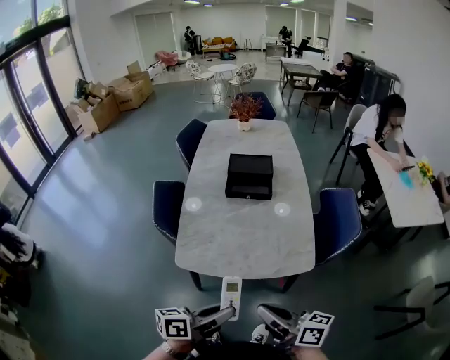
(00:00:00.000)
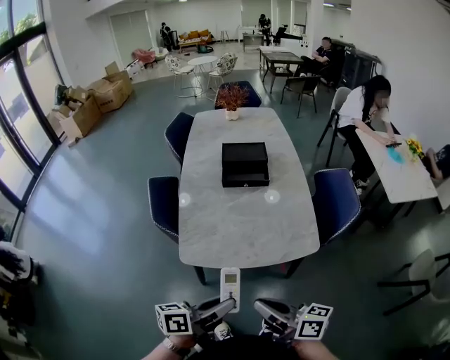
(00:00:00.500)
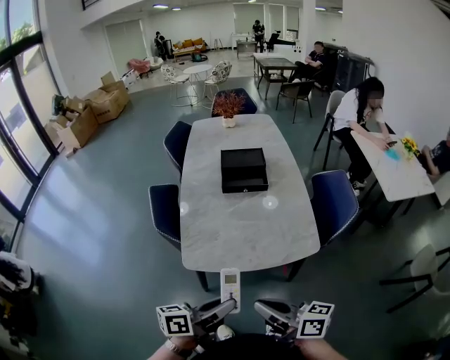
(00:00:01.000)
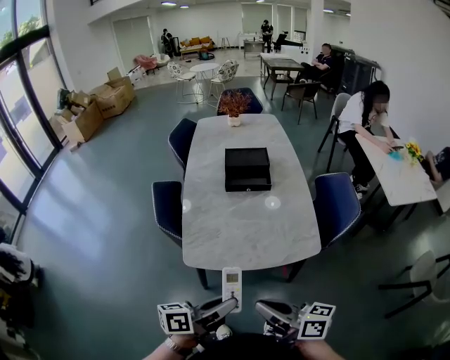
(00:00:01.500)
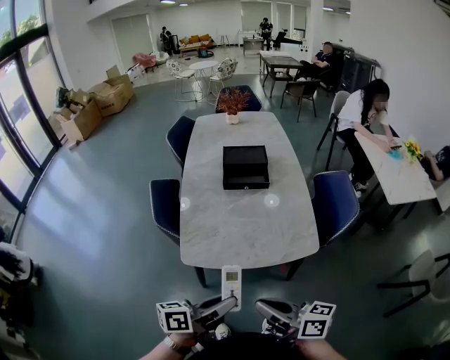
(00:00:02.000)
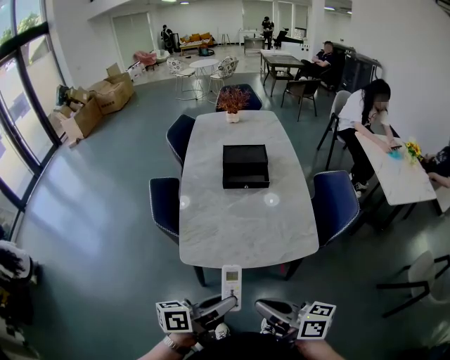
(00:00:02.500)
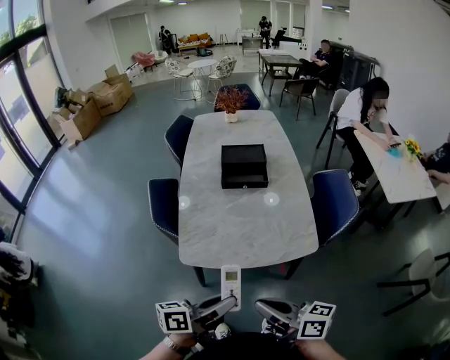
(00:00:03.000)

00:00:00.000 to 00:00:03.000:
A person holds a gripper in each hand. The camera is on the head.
00:00:00.000 to 00:00:01.500: Both grippers travel together to the left, some 5 cm.
00:00:01.500 to 00:00:03.000: The two grippers keep their place.

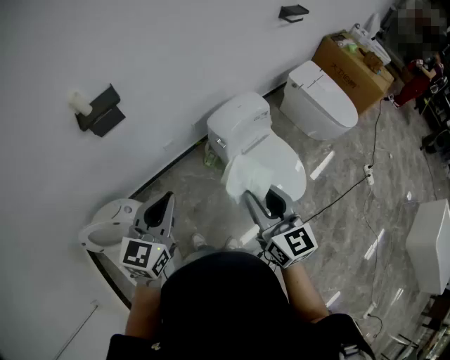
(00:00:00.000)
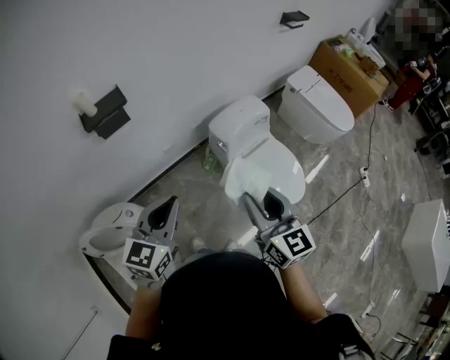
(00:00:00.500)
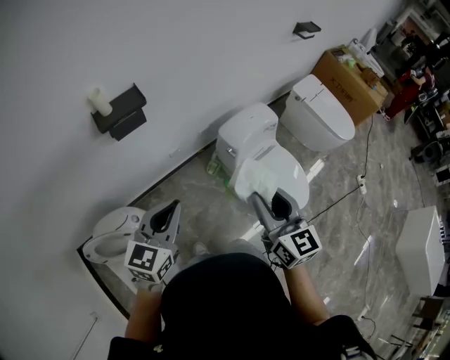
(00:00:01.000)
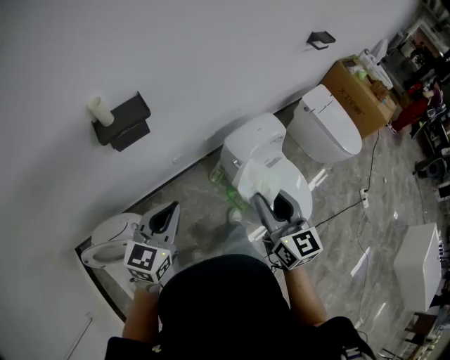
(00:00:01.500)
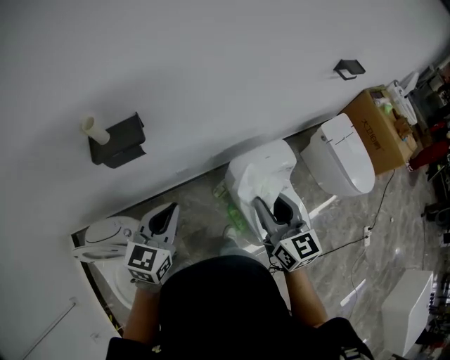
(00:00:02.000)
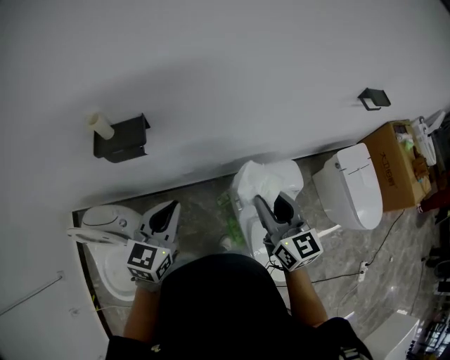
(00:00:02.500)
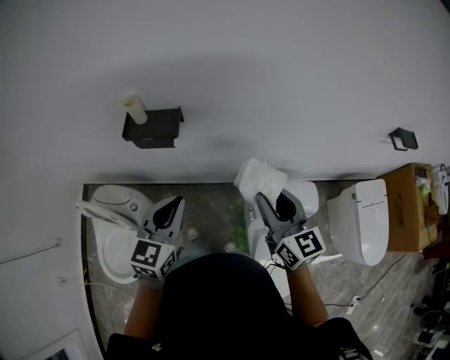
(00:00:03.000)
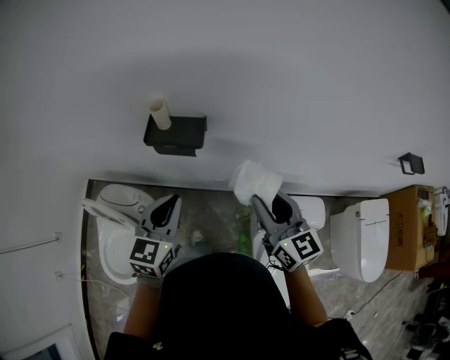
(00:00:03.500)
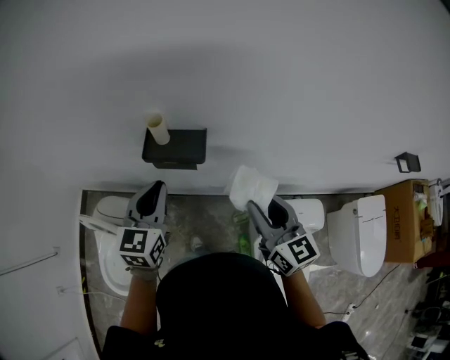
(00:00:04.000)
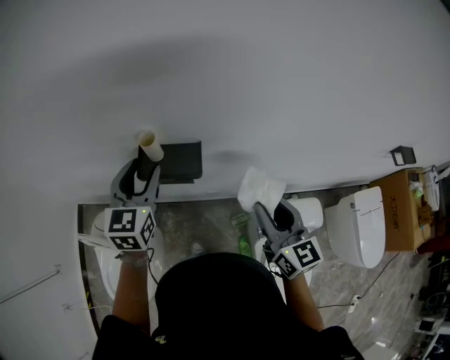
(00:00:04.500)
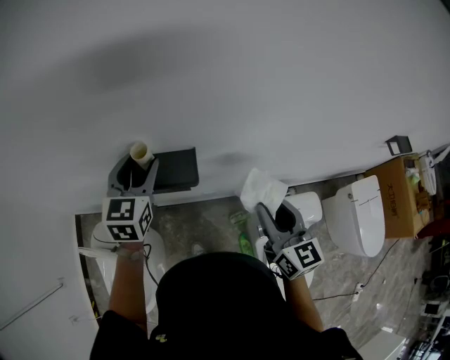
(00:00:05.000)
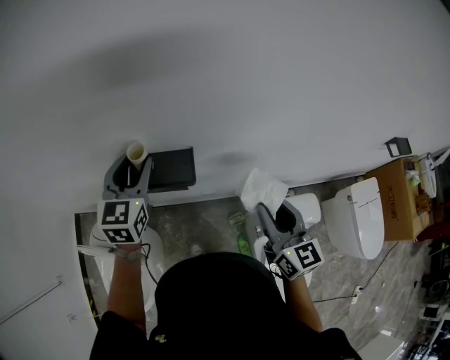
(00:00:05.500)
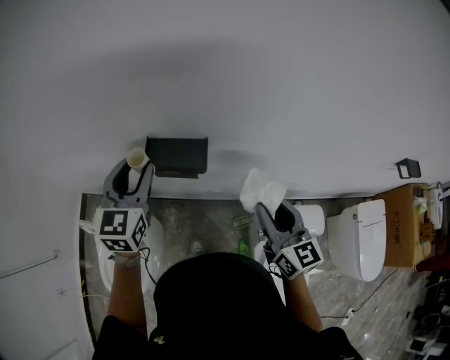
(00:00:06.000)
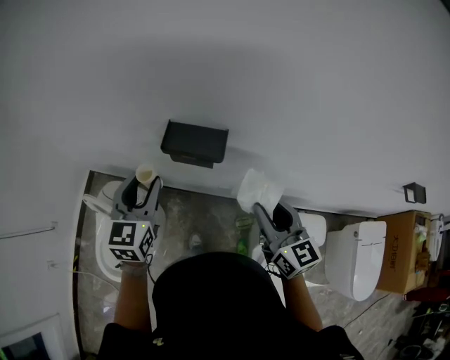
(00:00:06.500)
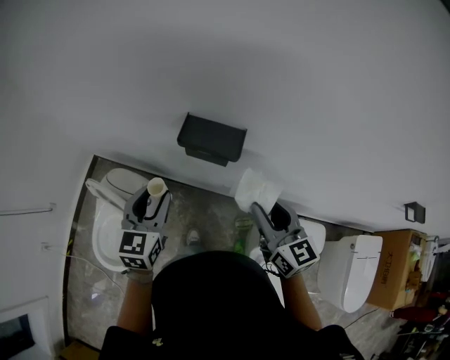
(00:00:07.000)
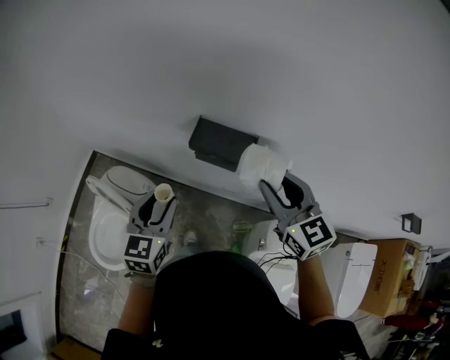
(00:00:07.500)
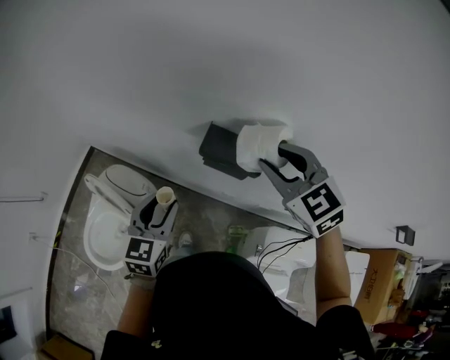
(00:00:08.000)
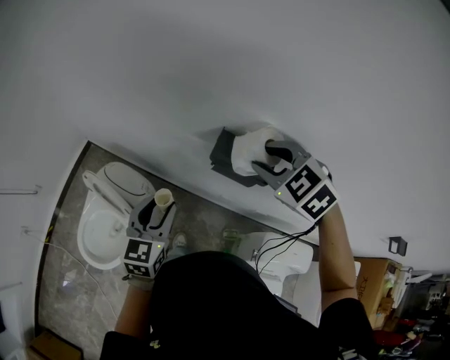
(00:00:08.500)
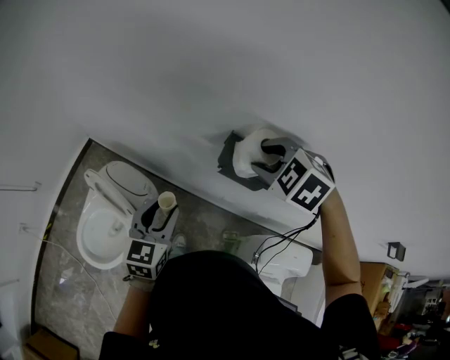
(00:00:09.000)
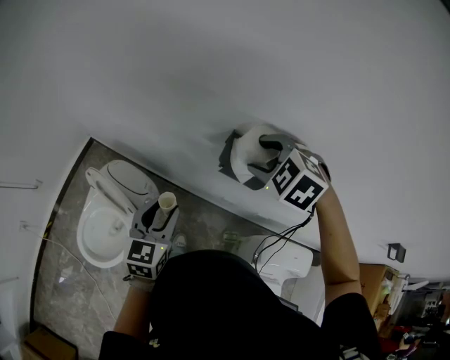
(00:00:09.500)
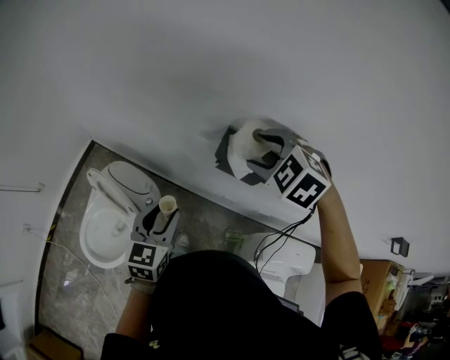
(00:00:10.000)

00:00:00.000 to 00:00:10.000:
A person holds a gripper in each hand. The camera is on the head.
00:00:00.000 to 00:00:02.000: Both grippers move forward, roughly 20 cm.
00:00:02.000 to 00:00:04.000: The left gripper moves some 20 cm, and swivels roughly 40 degrees. Meanwhile the right gripper ends up roughly 20 cm from where it was, and swivels approximately 30 degrees.
00:00:04.000 to 00:00:06.000: The left gripper goes some 10 cm to the left, upward and forward, and opens its fingers.
00:00:06.000 to 00:00:08.000: The right gripper shifts some 20 cm forward, to the left and upward, and swivels roughly 50 degrees. The left gripper shifts some 20 cm downward, backward and to the left.
00:00:08.000 to 00:00:10.000: The right gripper travels to the left by some 5 cm, changes its angle by about 30 degrees, and opens.

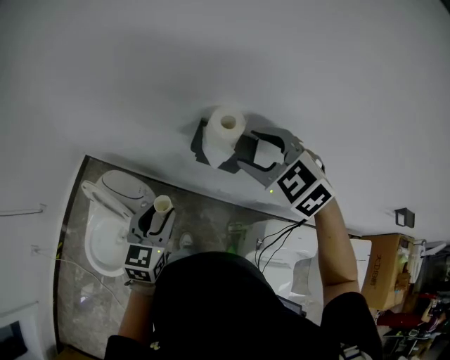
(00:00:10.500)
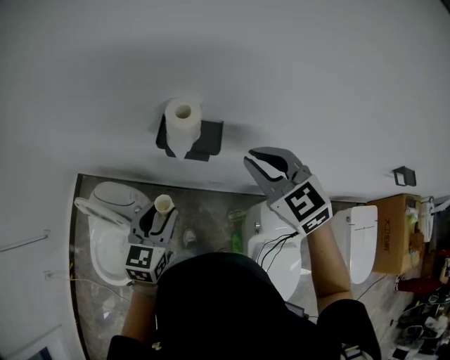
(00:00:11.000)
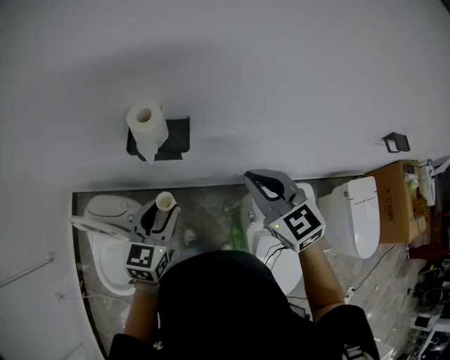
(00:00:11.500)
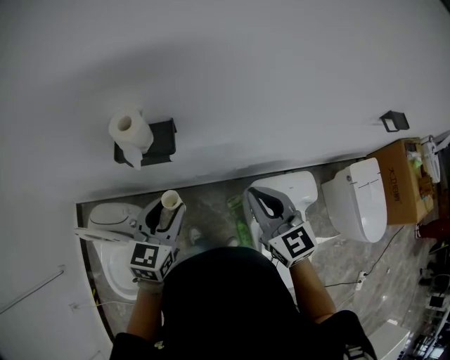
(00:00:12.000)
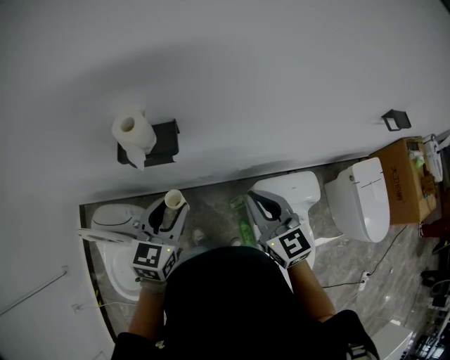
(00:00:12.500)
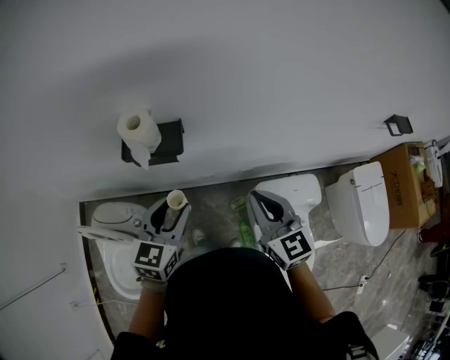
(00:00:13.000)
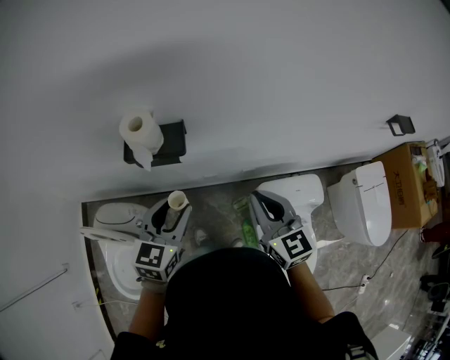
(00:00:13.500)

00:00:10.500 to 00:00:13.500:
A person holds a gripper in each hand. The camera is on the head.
00:00:10.500 to 00:00:12.000: The right gripper ends up approximately 30 cm from where it was, changes its angle by approximately 60 degrees, and closes. Meanwhile the left gripper ends up about 20 cm from where it was, and swivels about 30 degrees.
00:00:12.000 to 00:00:13.500: The grippers move only a little.

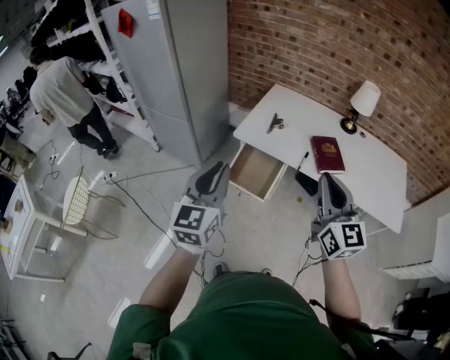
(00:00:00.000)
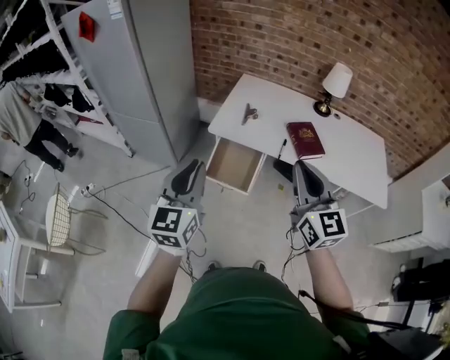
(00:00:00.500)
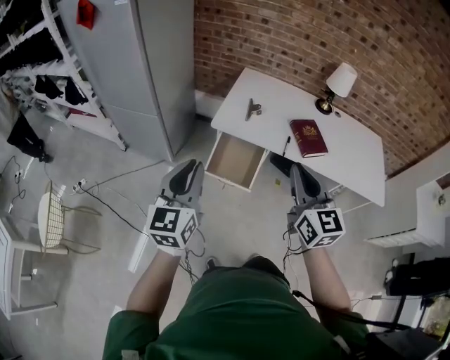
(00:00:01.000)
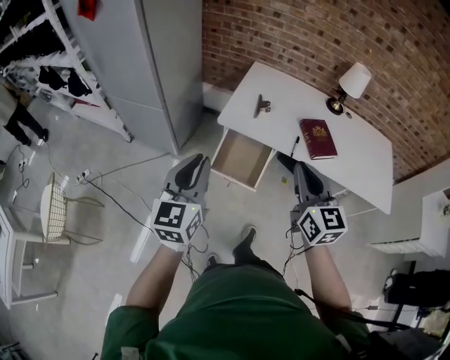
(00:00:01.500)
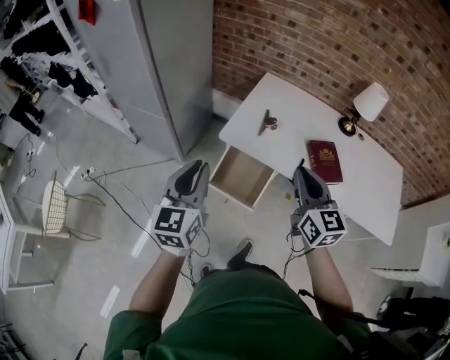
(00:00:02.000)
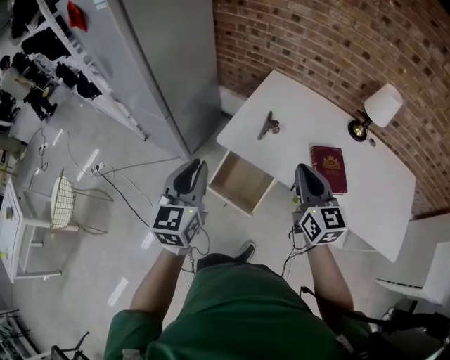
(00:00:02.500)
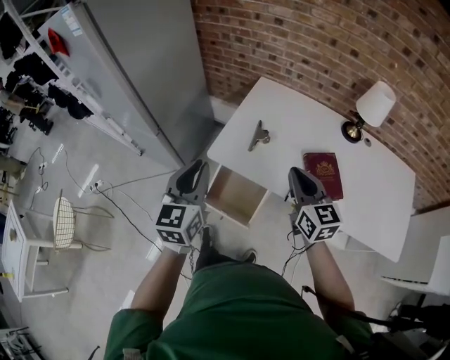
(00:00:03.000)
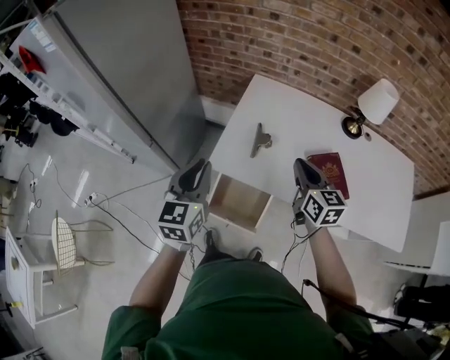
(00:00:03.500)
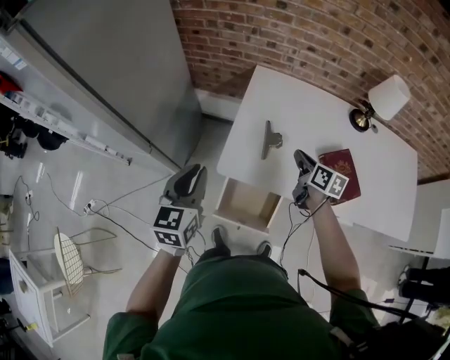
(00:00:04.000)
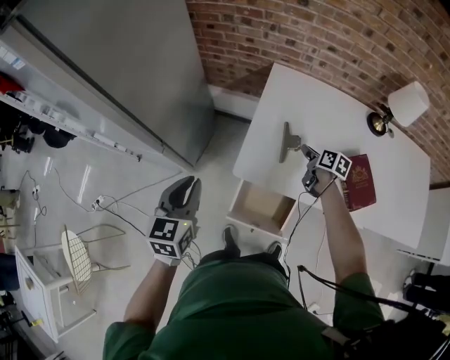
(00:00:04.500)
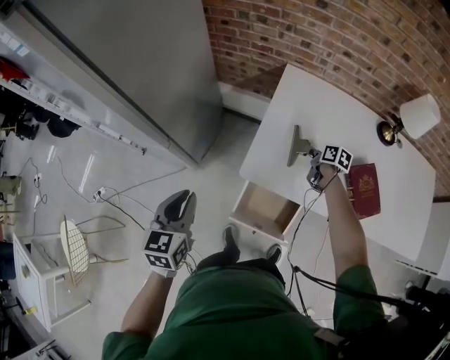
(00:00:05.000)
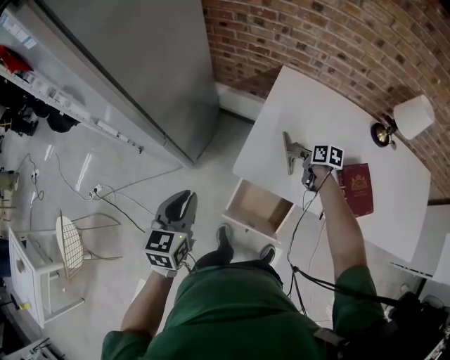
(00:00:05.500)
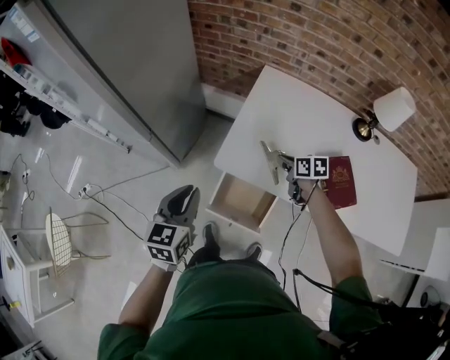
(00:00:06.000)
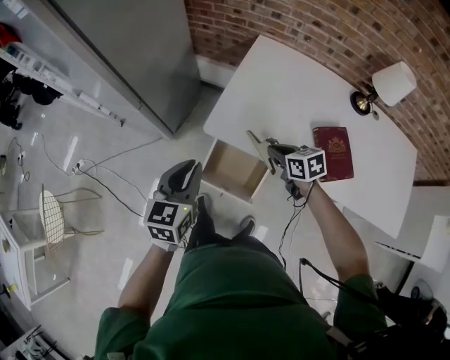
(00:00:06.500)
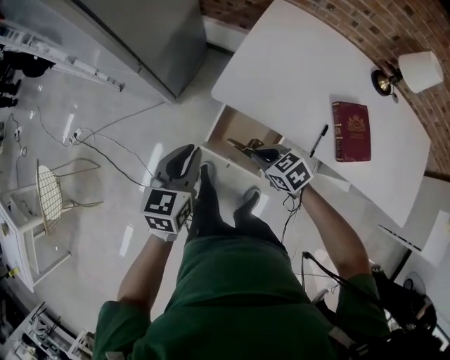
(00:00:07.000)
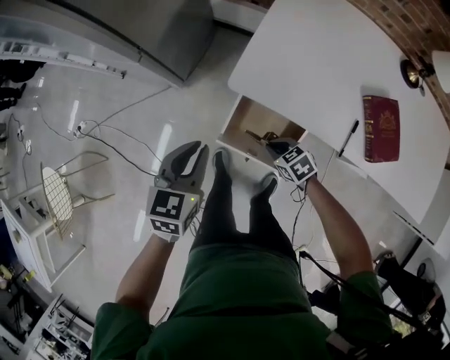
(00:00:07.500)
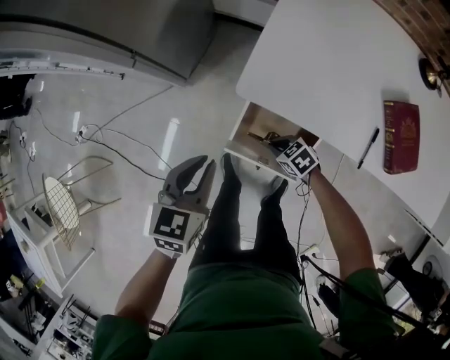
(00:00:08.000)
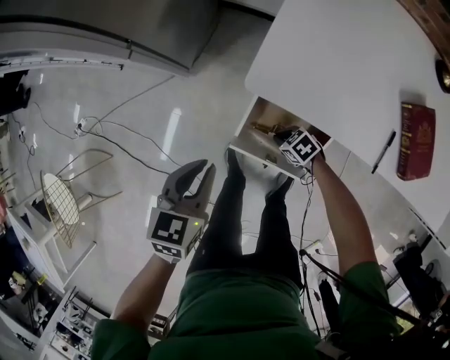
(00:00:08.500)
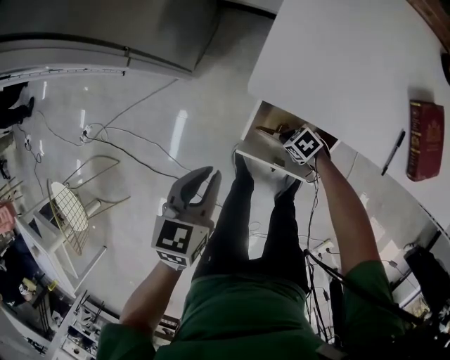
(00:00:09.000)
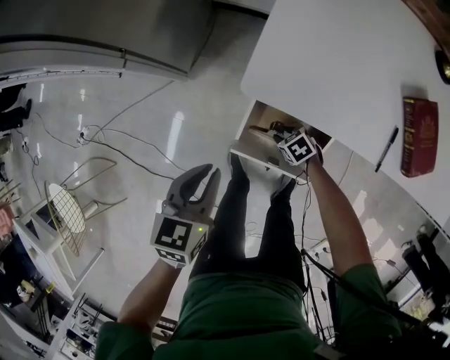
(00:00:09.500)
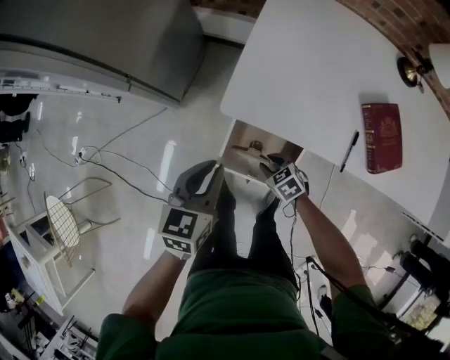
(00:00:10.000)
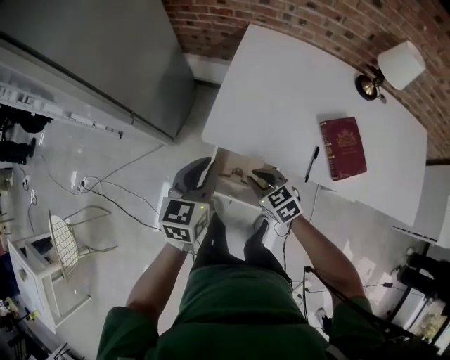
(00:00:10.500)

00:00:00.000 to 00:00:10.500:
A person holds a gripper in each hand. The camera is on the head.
00:00:00.000 to 00:00:02.000: The left gripper shifts some 15 cm forward and to the left, while the right gripper shifts roughly 20 cm forward and downward.
00:00:02.000 to 00:00:04.000: The left gripper travels forward by approximately 25 cm, while the right gripper goes approximately 35 cm forward and downward, and changes its angle by about 40 degrees.
00:00:04.000 to 00:00:06.500: The right gripper shifts some 15 cm backward, to the left and downward, and changes its angle by roughly 40 degrees, while the left gripper heads backward, covering some 10 cm, and goes to the left and returns, some 10 cm each way.
00:00:06.500 to 00:00:08.500: The right gripper shifts some 40 cm downward and to the left, and turns by roughly 30 degrees; the left gripper heads downward and to the left, covering about 25 cm, and changes its angle by approximately 20 degrees.
00:00:08.500 to 00:00:10.500: The left gripper goes some 15 cm upward, while the right gripper is displaced upward by approximately 30 cm, rotates roughly 30 degrees, and opens, then closes once more.
